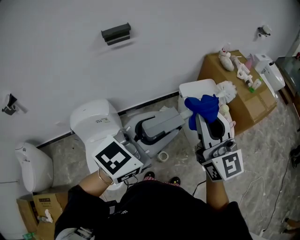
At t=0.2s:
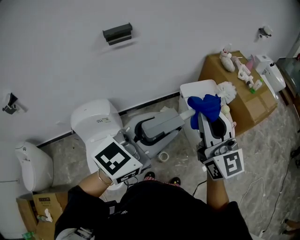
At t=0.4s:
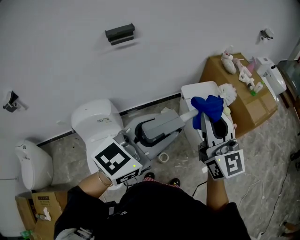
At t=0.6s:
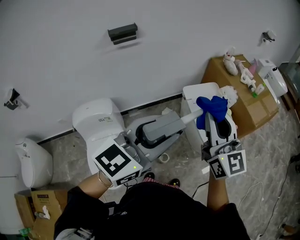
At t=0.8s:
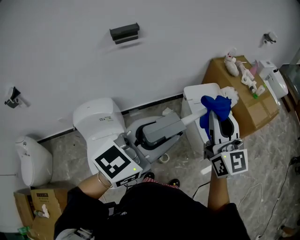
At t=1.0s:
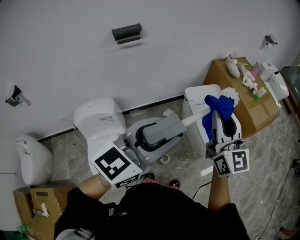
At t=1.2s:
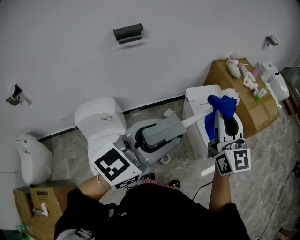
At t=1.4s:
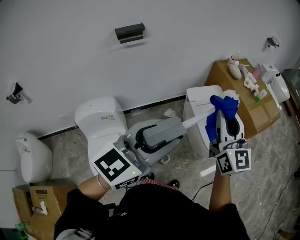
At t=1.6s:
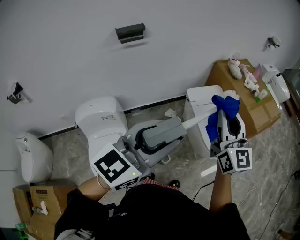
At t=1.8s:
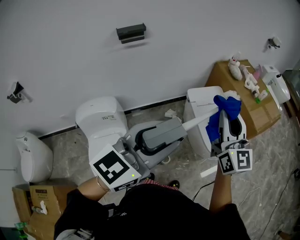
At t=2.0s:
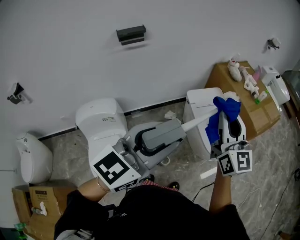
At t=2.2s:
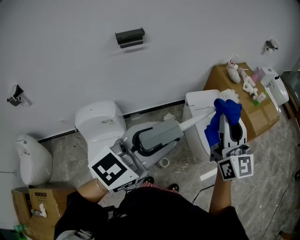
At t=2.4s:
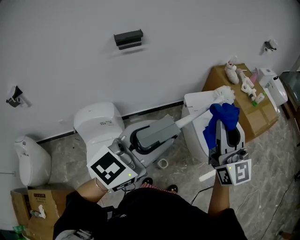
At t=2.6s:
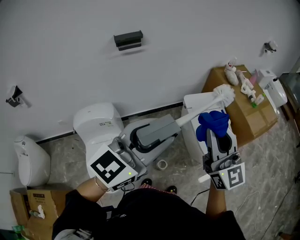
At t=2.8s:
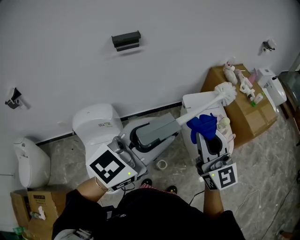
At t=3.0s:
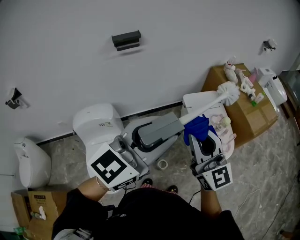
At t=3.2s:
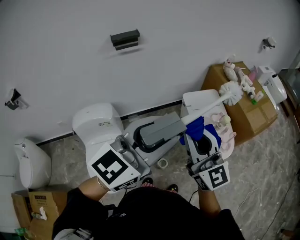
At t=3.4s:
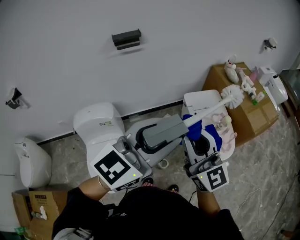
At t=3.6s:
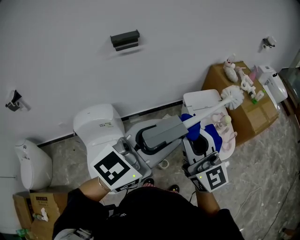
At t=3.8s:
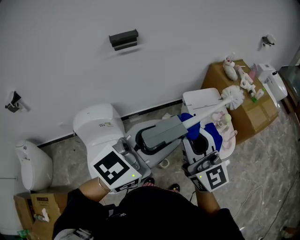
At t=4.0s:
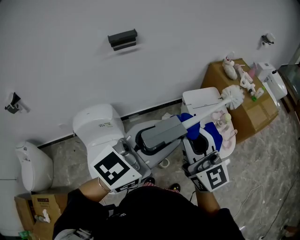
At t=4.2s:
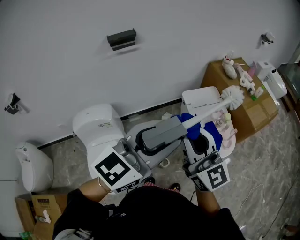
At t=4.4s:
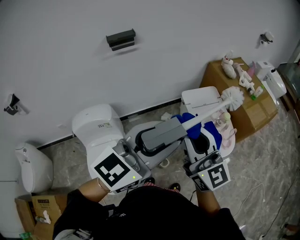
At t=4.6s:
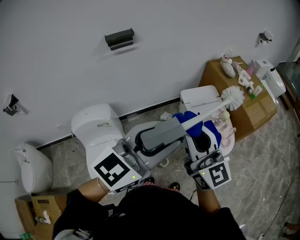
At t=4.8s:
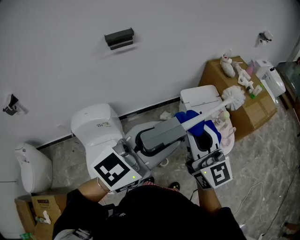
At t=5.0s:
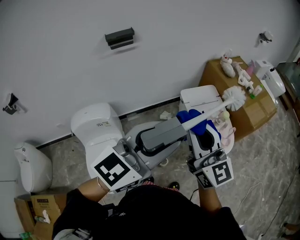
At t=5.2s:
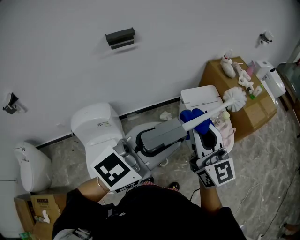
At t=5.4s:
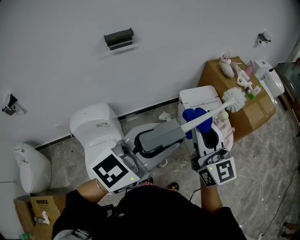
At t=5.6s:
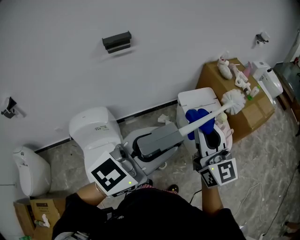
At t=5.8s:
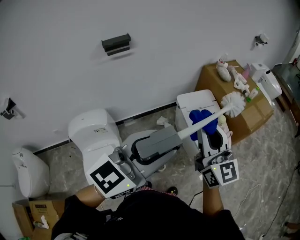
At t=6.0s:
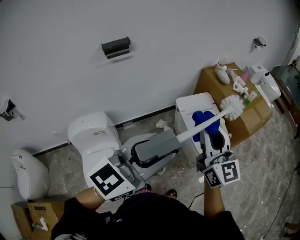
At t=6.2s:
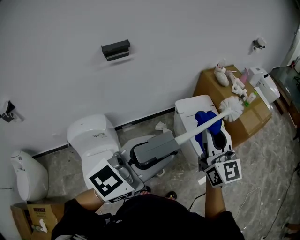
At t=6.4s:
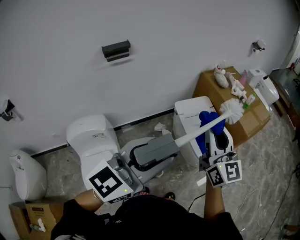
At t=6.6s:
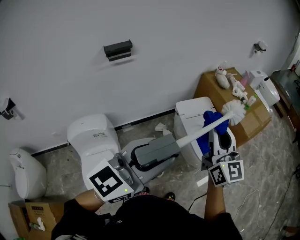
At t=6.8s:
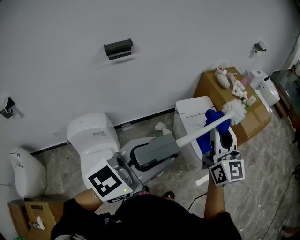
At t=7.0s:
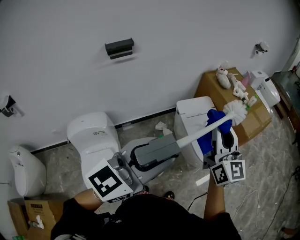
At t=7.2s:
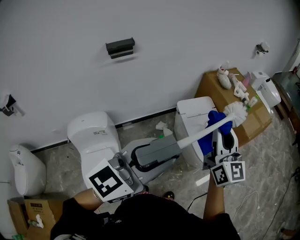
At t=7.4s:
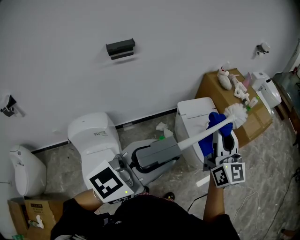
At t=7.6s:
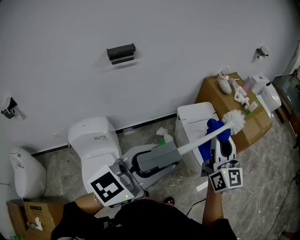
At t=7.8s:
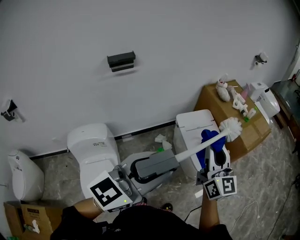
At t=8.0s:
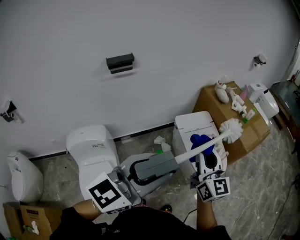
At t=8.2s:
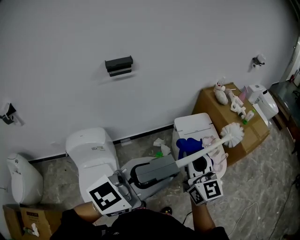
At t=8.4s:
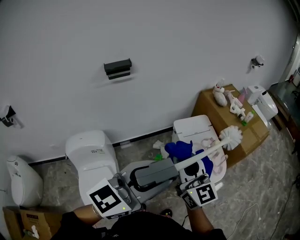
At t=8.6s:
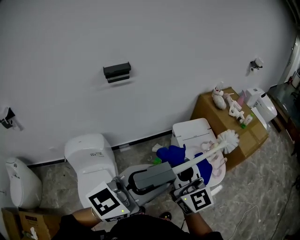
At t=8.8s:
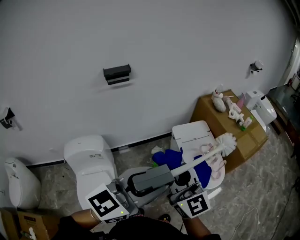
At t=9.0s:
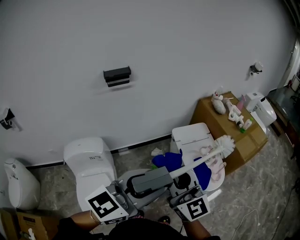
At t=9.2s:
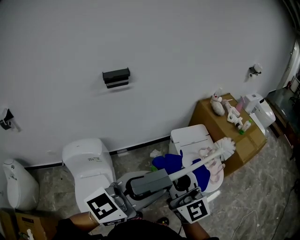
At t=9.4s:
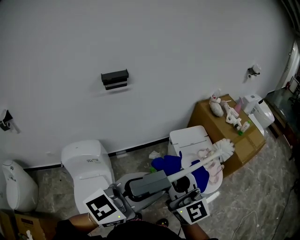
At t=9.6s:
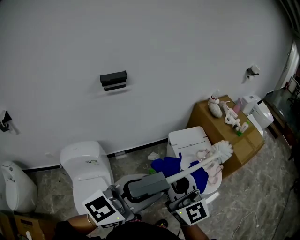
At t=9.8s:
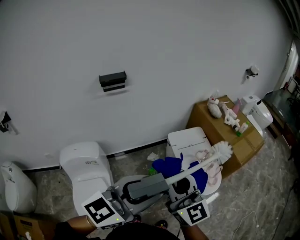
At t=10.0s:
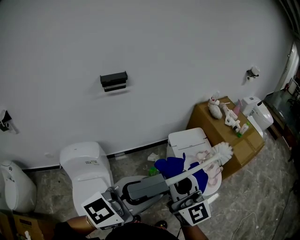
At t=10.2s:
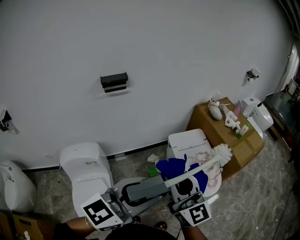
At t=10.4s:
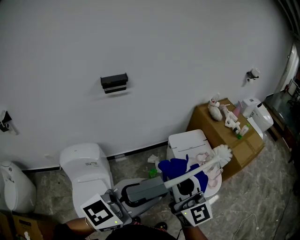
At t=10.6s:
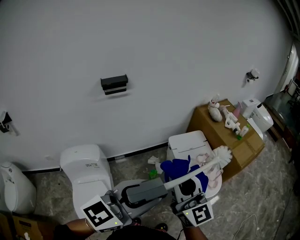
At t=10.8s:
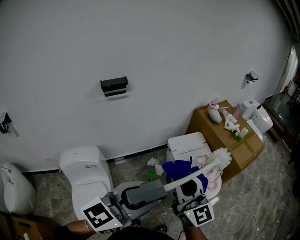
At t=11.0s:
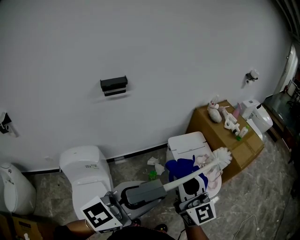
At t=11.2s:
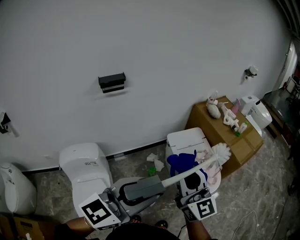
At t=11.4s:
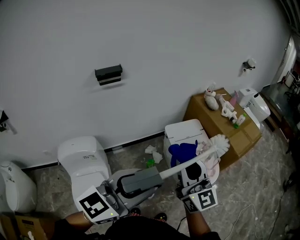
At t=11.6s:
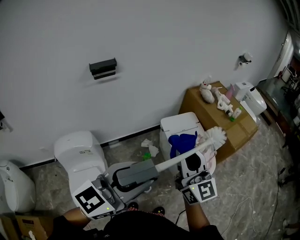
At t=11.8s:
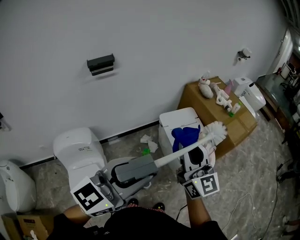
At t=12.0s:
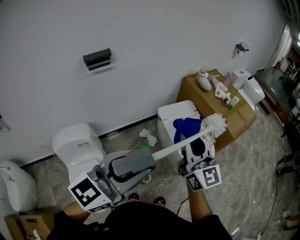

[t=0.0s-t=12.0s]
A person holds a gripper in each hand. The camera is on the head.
t=0.0s to t=1.6s: The right gripper moves forward, some 5 cm.
t=1.6s to t=3.0s: The right gripper moves to the left and backward, about 10 cm.
t=3.0s to t=4.4s: There are only small adjustments of the grippers.
t=4.4s to t=6.0s: The right gripper shifts approximately 5 cm to the right.
t=6.0s to t=7.6s: The right gripper moves roughly 5 cm.
t=7.6s to t=9.0s: The right gripper travels to the left and backward by approximately 15 cm, and turns by approximately 20 degrees.
t=9.0s to t=10.4s: The grippers make only small movements.
t=10.4s to t=12.0s: The right gripper goes about 10 cm to the right.

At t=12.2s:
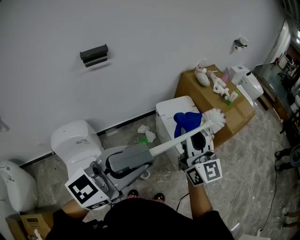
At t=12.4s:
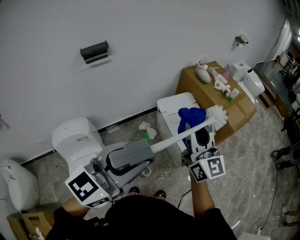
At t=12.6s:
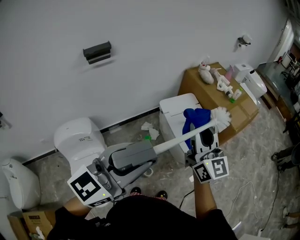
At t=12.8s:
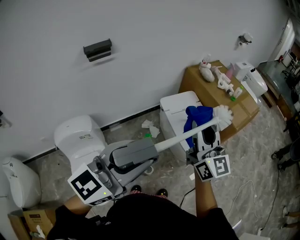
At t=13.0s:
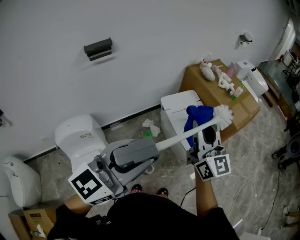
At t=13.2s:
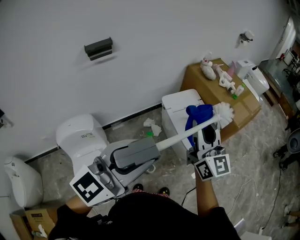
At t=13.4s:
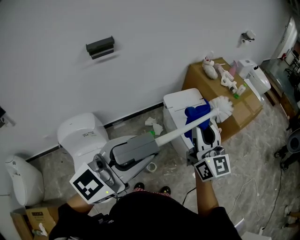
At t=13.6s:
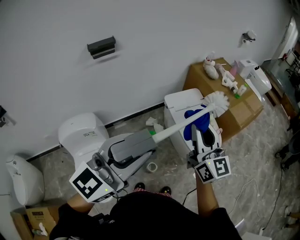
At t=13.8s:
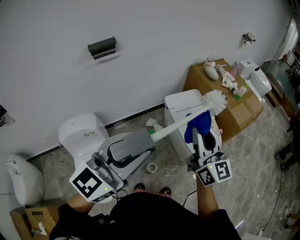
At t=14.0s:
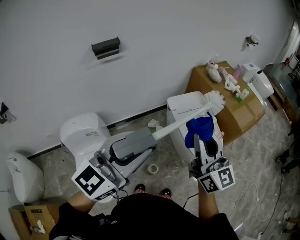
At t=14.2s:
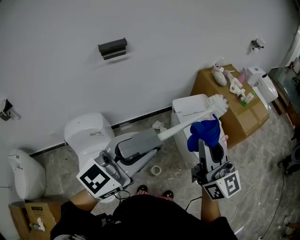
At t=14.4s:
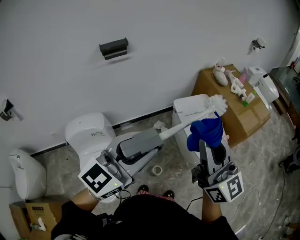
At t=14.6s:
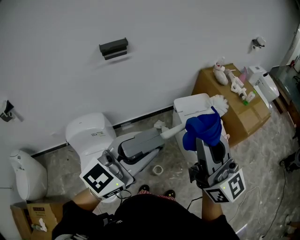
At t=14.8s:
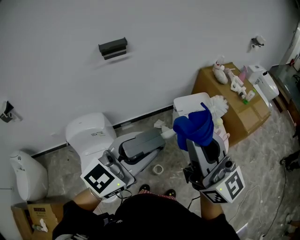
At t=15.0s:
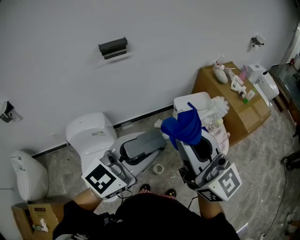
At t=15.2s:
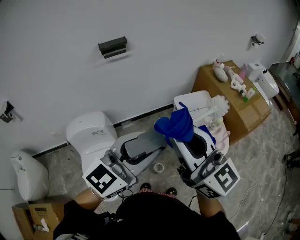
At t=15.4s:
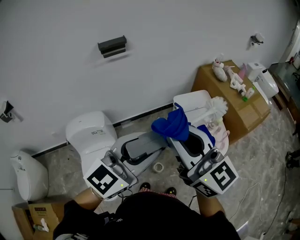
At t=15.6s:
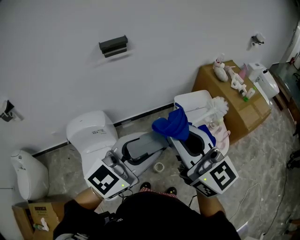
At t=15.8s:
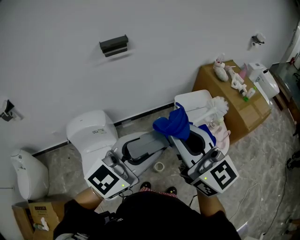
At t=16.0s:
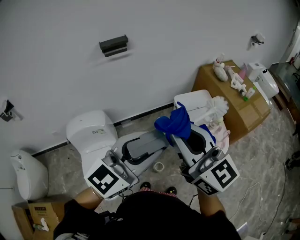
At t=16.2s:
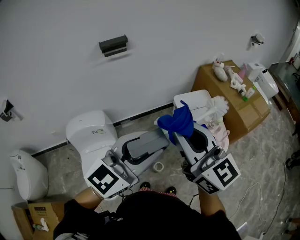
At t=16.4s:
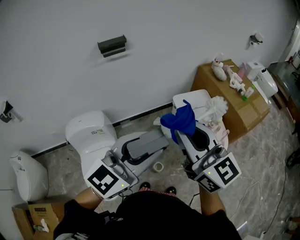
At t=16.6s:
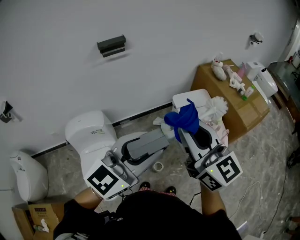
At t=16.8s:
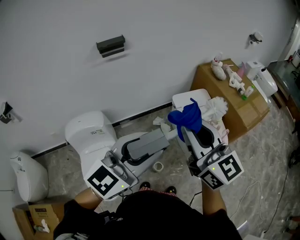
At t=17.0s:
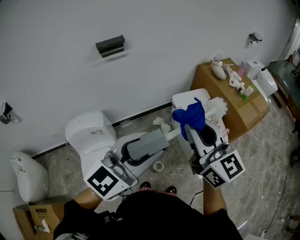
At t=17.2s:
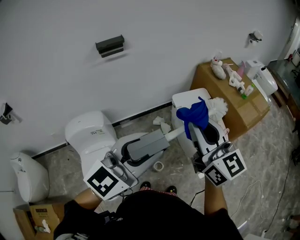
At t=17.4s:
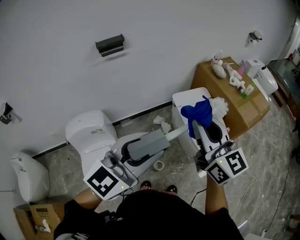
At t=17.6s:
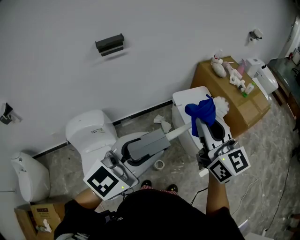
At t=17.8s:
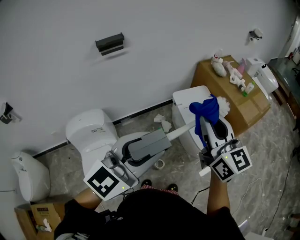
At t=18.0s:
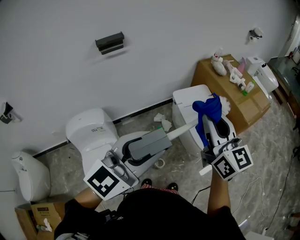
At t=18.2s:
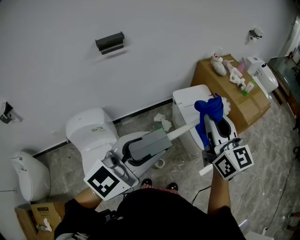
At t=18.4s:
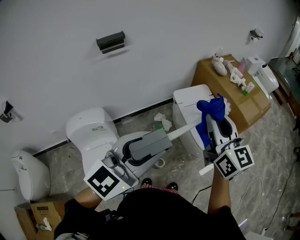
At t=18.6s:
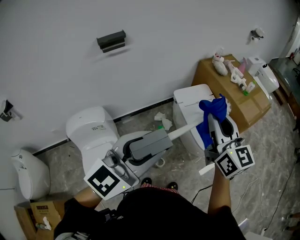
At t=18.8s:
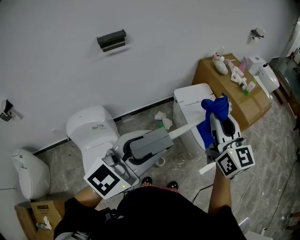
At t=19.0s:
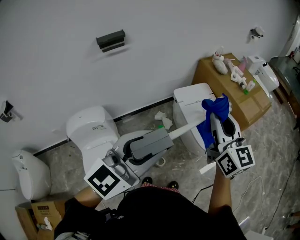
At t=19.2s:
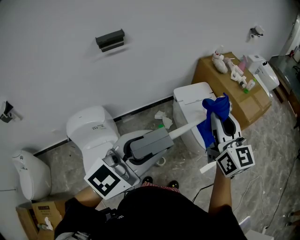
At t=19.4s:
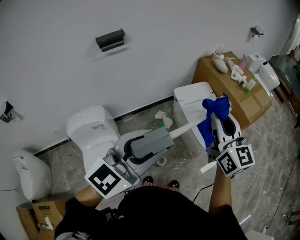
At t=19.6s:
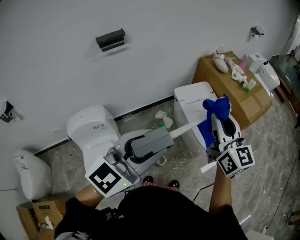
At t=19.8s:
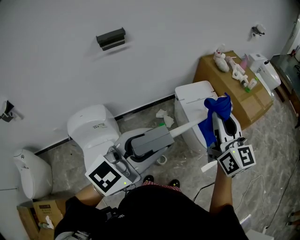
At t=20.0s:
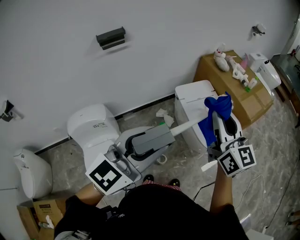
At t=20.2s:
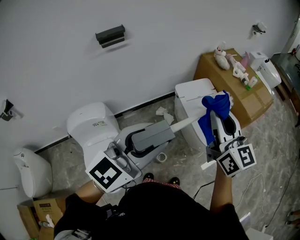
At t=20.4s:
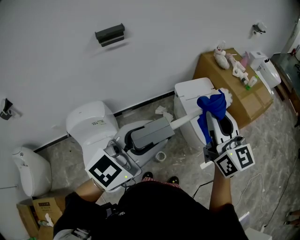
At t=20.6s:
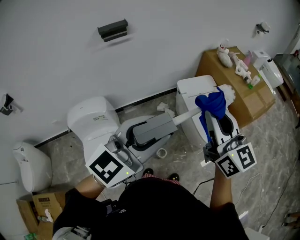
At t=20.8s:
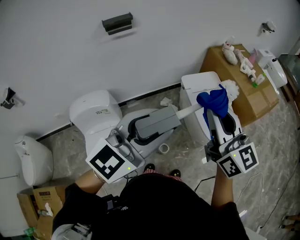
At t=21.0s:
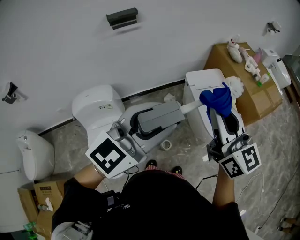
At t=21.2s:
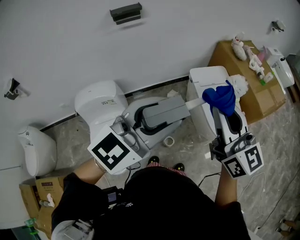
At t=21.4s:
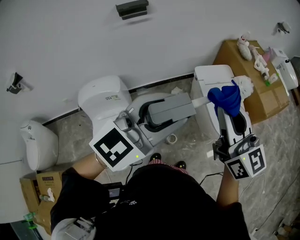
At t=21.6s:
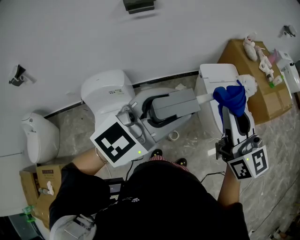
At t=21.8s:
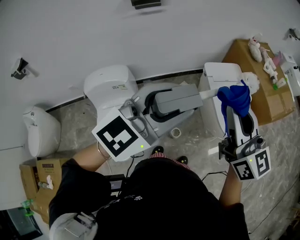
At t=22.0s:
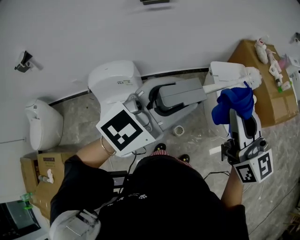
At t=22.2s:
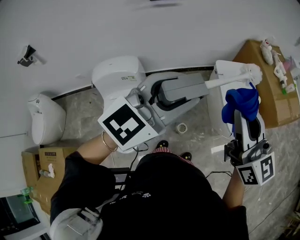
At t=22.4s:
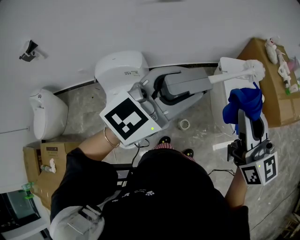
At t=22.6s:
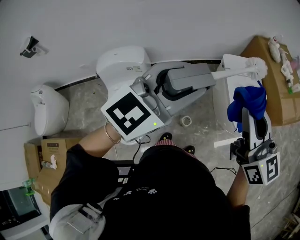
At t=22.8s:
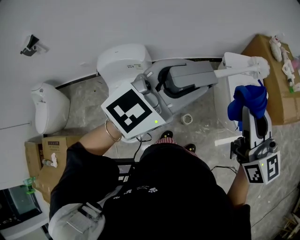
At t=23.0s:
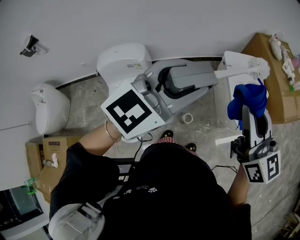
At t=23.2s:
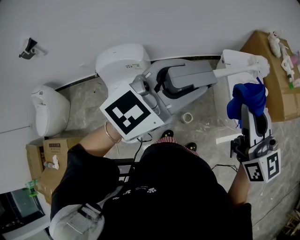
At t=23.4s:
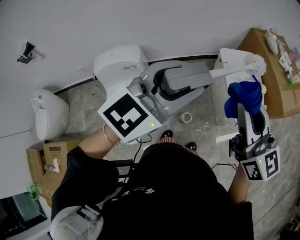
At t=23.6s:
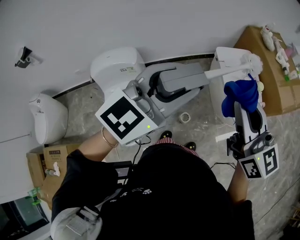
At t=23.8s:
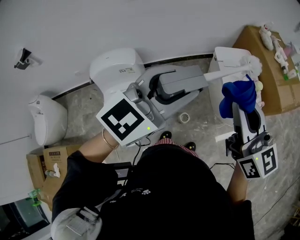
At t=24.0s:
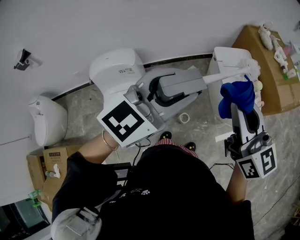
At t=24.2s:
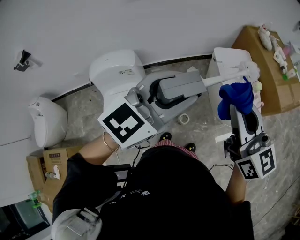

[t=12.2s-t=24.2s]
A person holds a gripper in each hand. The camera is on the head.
t=12.2s to t=13.8s: The grippers make only small movements.
t=13.8s to t=15.2s: The right gripper is displaced to the left, upward and backward by roughly 15 cm, and turns by approximately 30 degrees.
t=15.2s to t=16.6s: There are only small adjustments of the grippers.
t=16.6s to t=18.2s: The right gripper is displaced to the right and forward by about 10 cm.
t=18.2s to t=19.8s: The grippers stay close to where they were, moving slightly.
t=19.8s to t=21.2s: The right gripper moves to the left, about 5 cm.
t=21.2s to t=22.6s: The left gripper heads to the left, covering about 5 cm.
t=22.6s to t=24.2s: The two grippers keep their place.
